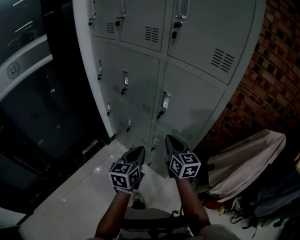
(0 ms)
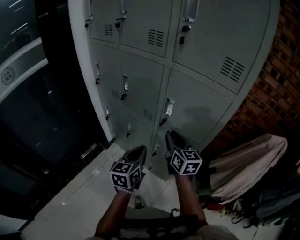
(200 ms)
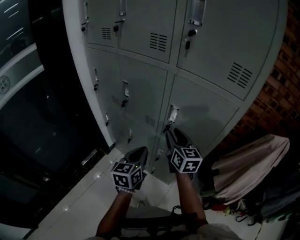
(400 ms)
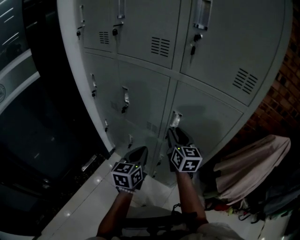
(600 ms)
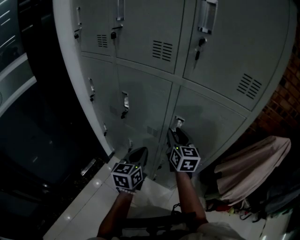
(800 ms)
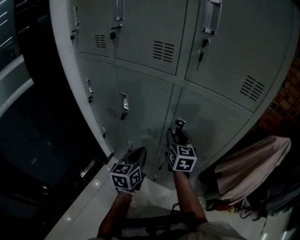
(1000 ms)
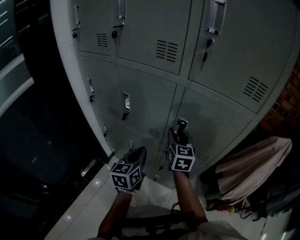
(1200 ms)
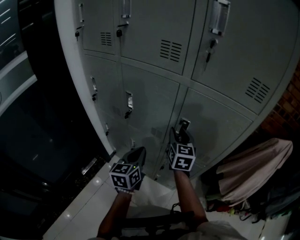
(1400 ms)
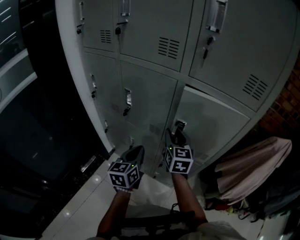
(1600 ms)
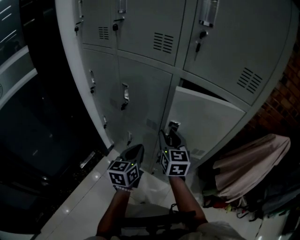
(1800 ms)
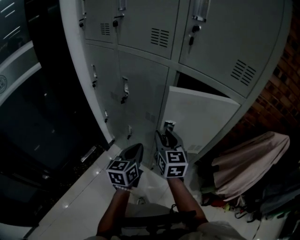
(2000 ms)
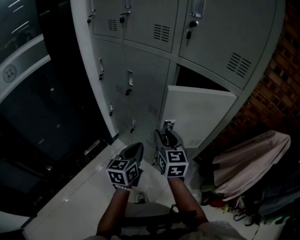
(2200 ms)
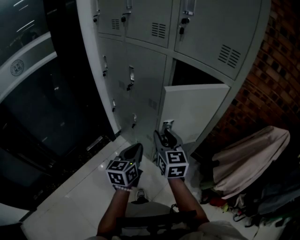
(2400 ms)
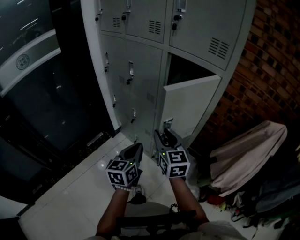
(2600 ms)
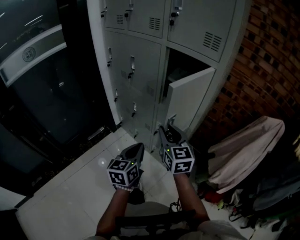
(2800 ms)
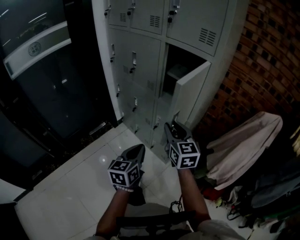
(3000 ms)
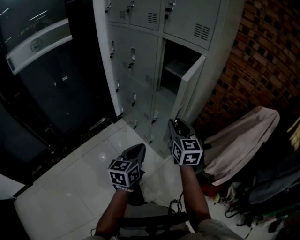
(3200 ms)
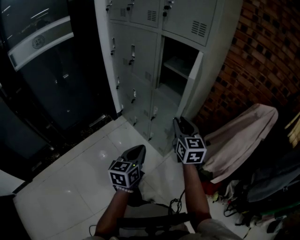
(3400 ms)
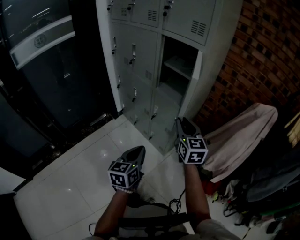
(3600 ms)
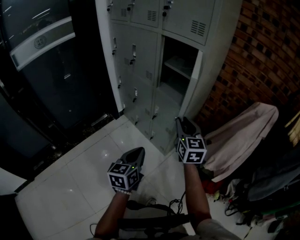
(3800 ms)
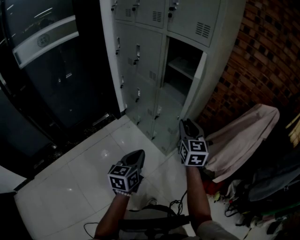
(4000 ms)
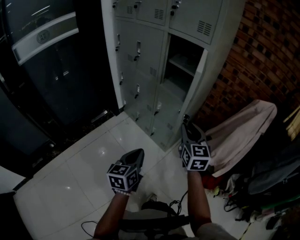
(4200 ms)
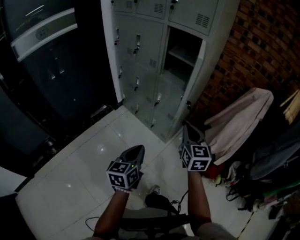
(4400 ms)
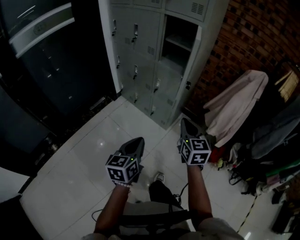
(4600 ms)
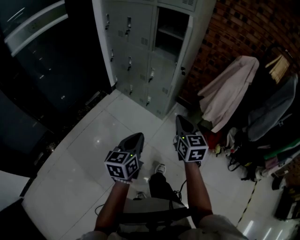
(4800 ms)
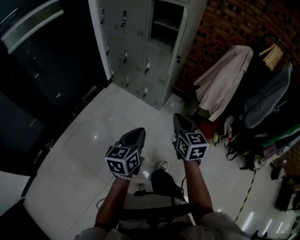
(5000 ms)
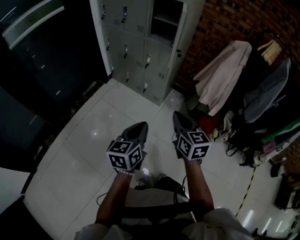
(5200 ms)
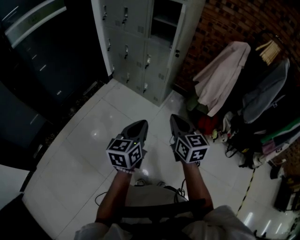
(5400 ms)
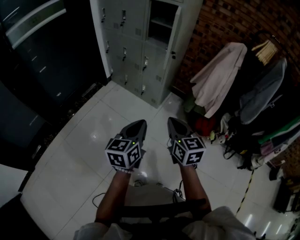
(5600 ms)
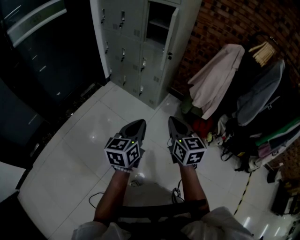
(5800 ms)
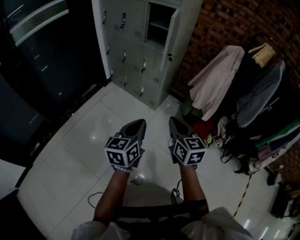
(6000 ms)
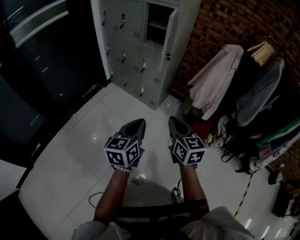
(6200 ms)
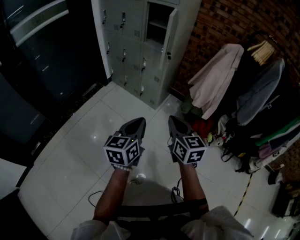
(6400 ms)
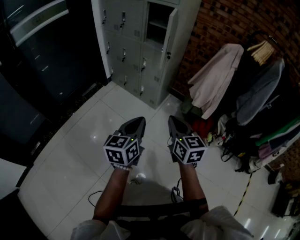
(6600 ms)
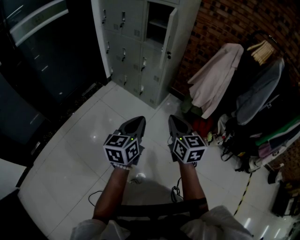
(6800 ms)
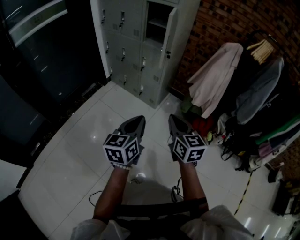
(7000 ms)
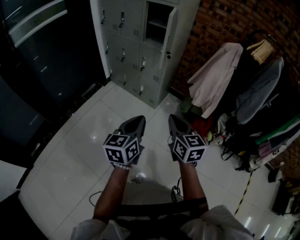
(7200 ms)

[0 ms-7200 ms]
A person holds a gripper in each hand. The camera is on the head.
0 ms to 1400 ms: The left gripper heads forward and to the left, covering approximately 20 cm. The right gripper moves forward, some 15 cm, rotates approximately 30 degrees, and opens.
1400 ms to 2800 ms: The right gripper is displaced backward by roughly 30 cm, and changes its angle by approximately 30 degrees, while the left gripper heads backward and to the right, covering approximately 30 cm.
2800 ms to 4400 ms: The right gripper moves backward and to the right, some 25 cm, and closes its fingers; the left gripper goes roughly 25 cm backward.
4400 ms to 5800 ms: Both grippers move backward, roughly 25 cm.
5800 ms to 7200 ms: There are only small adjustments of the grippers.

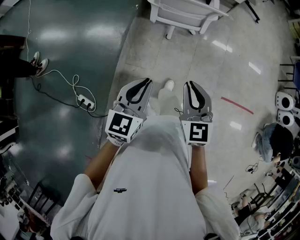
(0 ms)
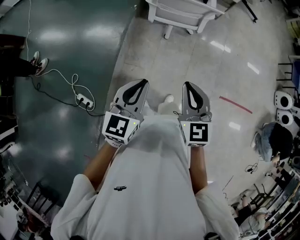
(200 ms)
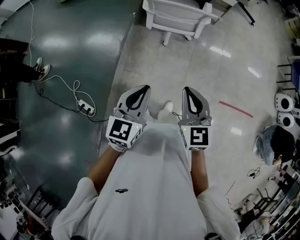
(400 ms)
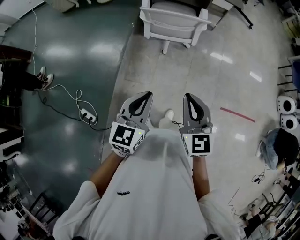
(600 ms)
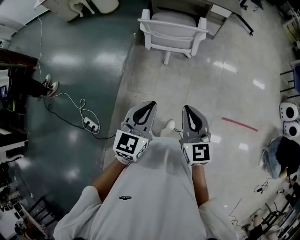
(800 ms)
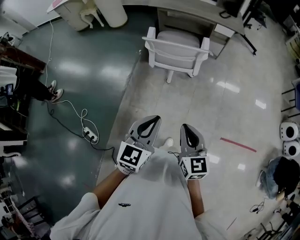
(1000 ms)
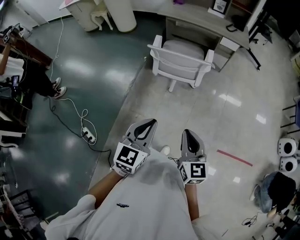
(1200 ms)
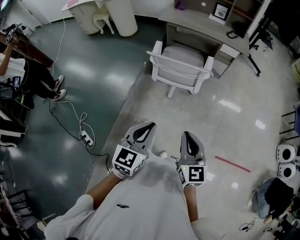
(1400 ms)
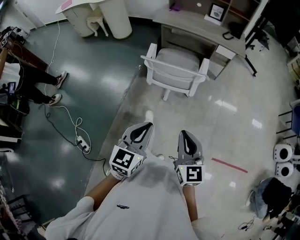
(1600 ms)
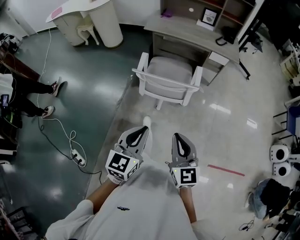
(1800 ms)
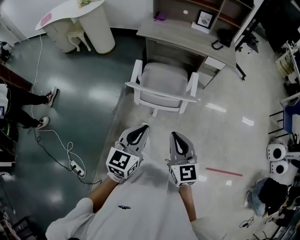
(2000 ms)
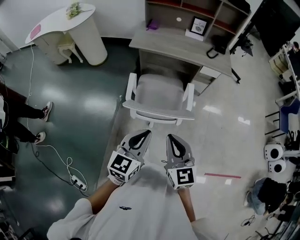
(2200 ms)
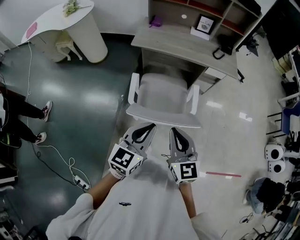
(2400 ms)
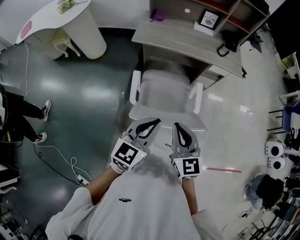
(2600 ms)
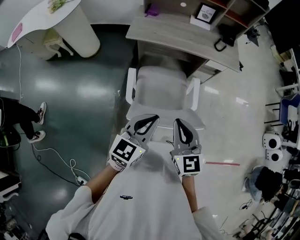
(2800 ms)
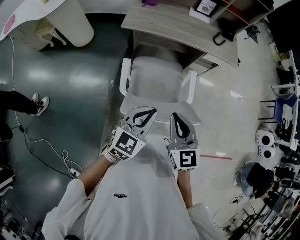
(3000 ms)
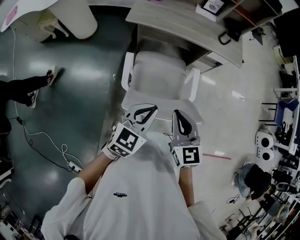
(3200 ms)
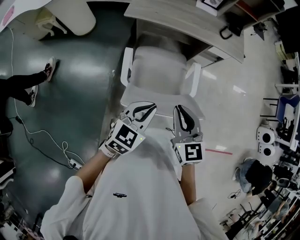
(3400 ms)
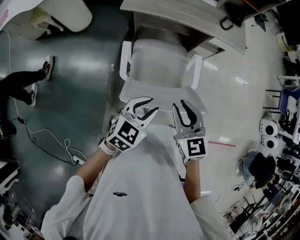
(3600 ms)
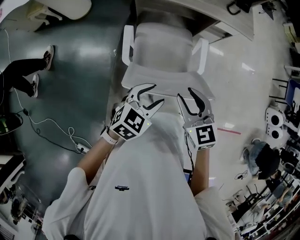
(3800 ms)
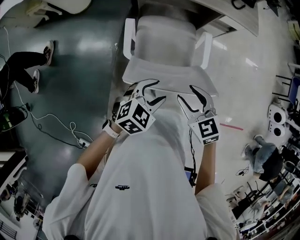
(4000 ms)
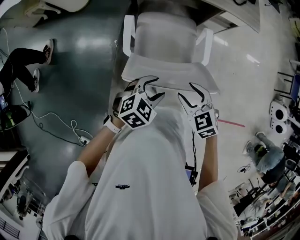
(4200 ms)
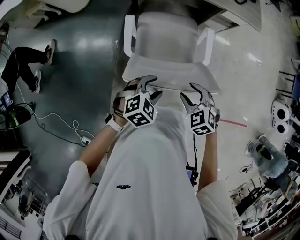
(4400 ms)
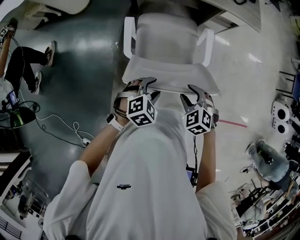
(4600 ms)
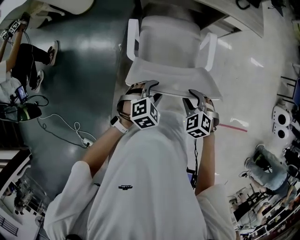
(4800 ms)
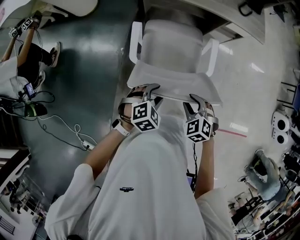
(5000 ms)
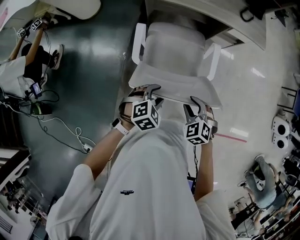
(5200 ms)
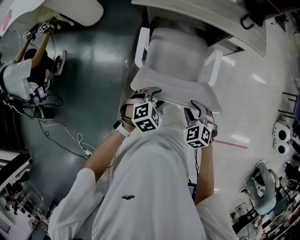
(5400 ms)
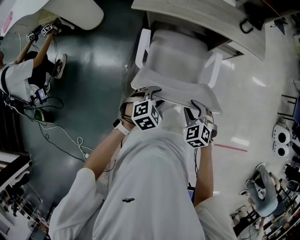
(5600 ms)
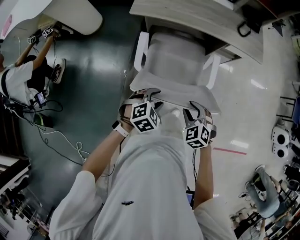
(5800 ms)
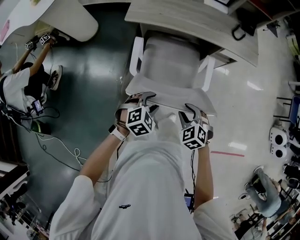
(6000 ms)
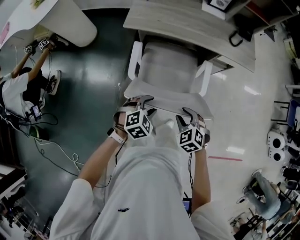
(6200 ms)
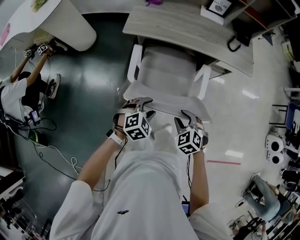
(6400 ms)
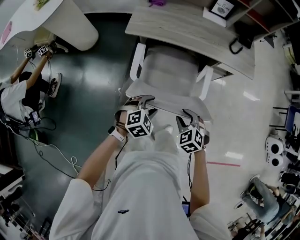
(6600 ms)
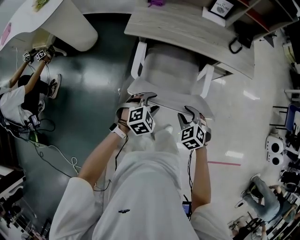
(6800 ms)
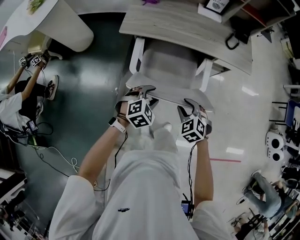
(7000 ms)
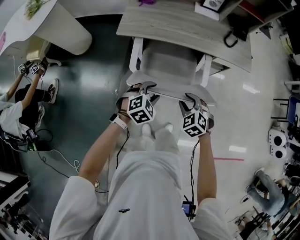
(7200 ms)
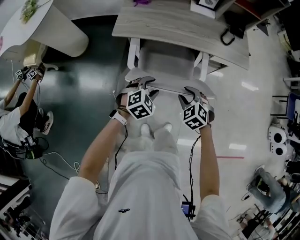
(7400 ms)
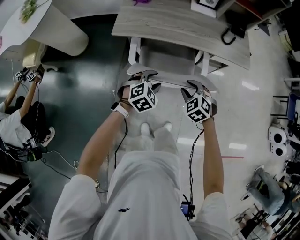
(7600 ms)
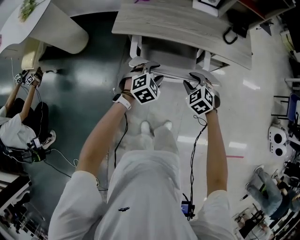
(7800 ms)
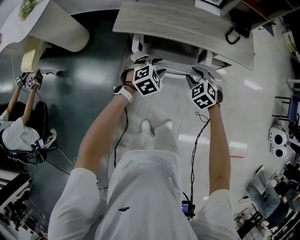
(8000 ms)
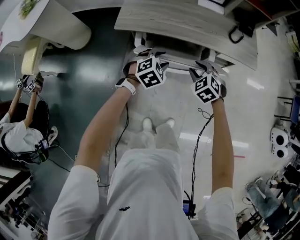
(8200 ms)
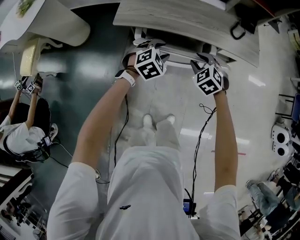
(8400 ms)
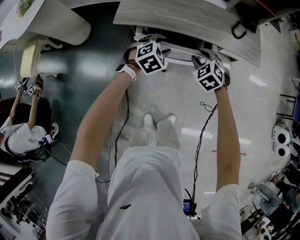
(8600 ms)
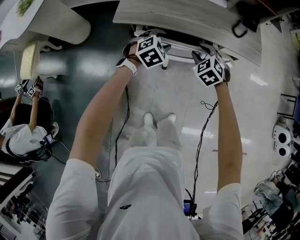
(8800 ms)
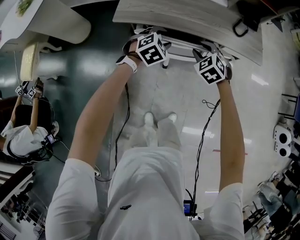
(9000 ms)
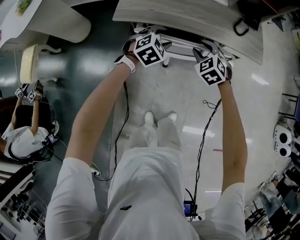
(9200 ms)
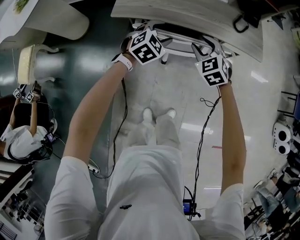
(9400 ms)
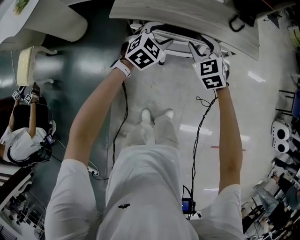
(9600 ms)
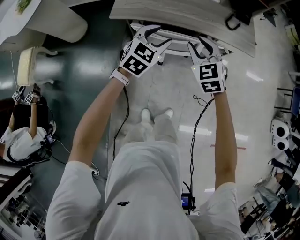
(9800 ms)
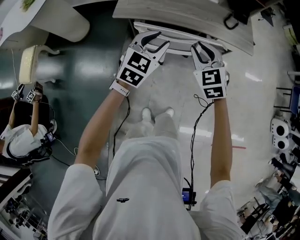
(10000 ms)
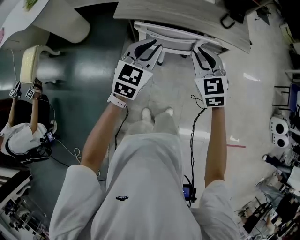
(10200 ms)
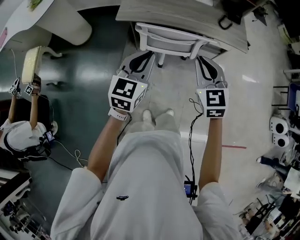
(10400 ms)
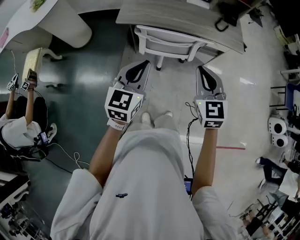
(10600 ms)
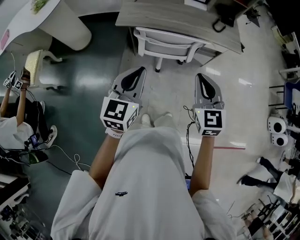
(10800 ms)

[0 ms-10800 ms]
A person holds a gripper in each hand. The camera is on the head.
0 ms to 1600 ms: Both grippers move to the right and forward, approximately 15 cm.
1600 ms to 3000 ms: The two grippers travel together, forward, about 40 cm. The left gripper swivels approximately 20 degrees.
3000 ms to 4600 ms: The grippers both shift downward by some 20 cm. The left gripper tilts its fingers approximately 40 degrees downward, and opens. Meanwhile the right gripper angles its fingers downward, by some 40 degrees, and opens.
4600 ms to 6200 ms: Both grippers travel together forward, roughly 15 cm.
6200 ms to 7800 ms: The grippers both shift forward by approximately 20 cm.
7800 ms to 9200 ms: The two grippers go some 10 cm forward.
9200 ms to 10800 ms: The grippers both shift backward and upward by about 35 cm. The left gripper tips its fingers upward by some 40 degrees, and closes its fingers, while the right gripper turns by some 40 degrees, and closes.

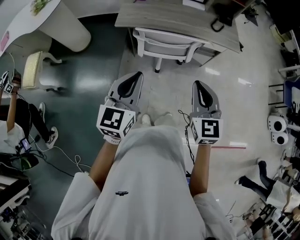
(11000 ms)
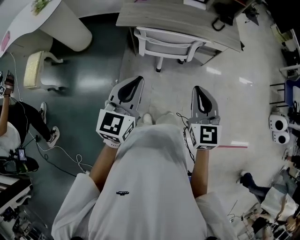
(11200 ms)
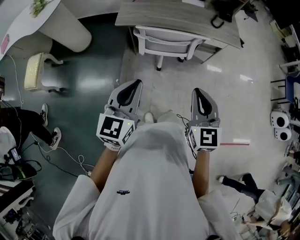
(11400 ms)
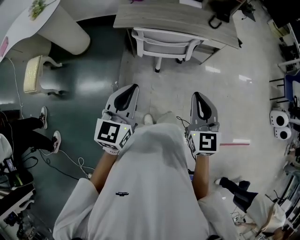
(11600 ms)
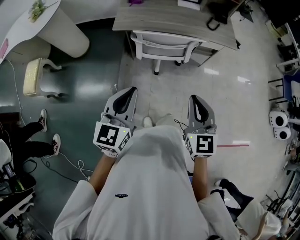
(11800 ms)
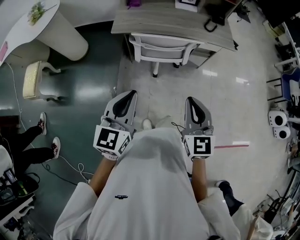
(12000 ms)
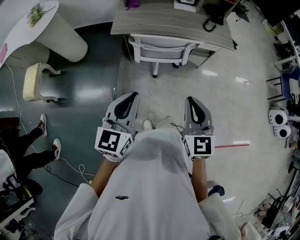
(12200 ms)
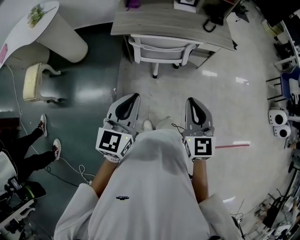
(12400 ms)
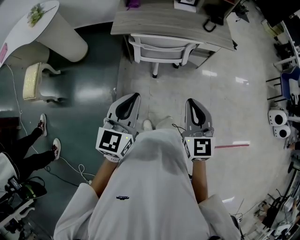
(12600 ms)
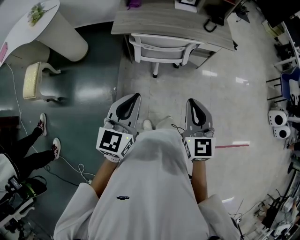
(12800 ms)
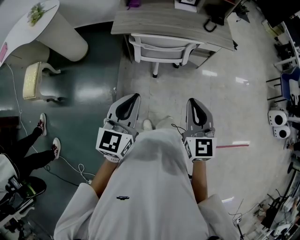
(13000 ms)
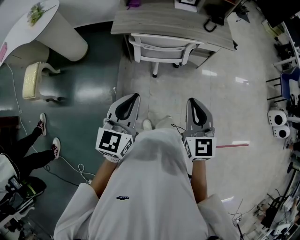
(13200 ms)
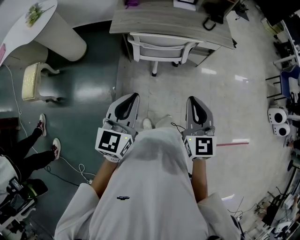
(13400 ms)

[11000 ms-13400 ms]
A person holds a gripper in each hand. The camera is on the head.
11000 ms to 12200 ms: Both grippers move backward, some 5 cm.
12200 ms to 13400 ms: Both grippers stay put.

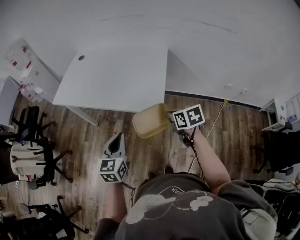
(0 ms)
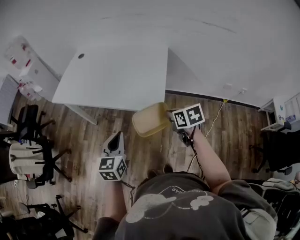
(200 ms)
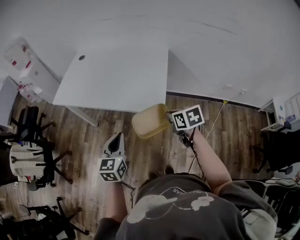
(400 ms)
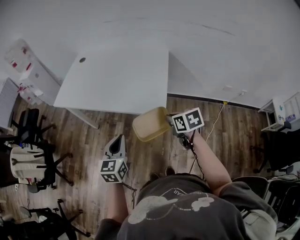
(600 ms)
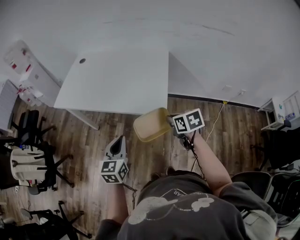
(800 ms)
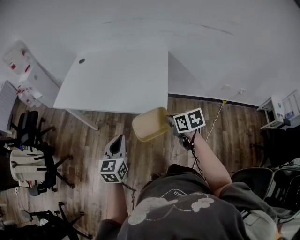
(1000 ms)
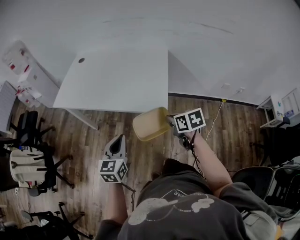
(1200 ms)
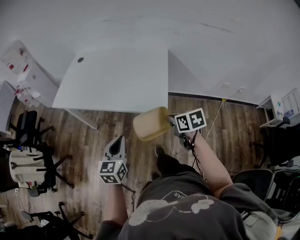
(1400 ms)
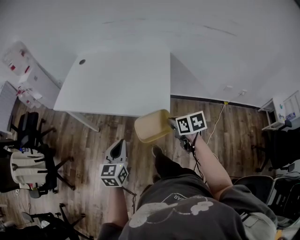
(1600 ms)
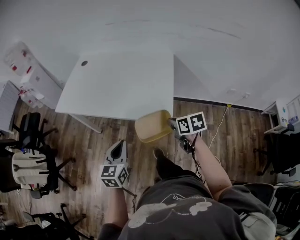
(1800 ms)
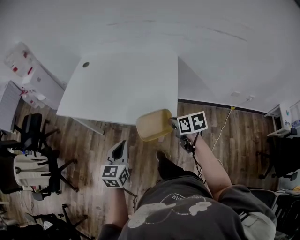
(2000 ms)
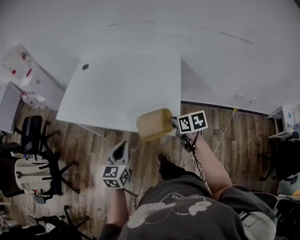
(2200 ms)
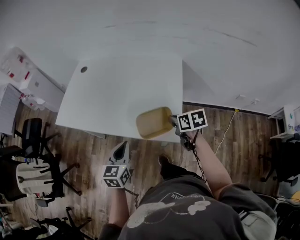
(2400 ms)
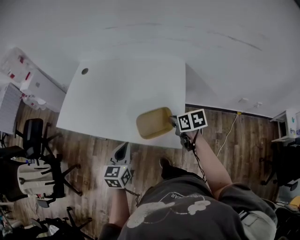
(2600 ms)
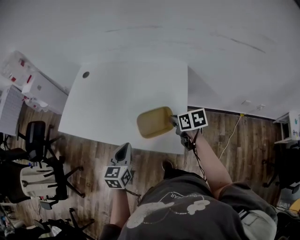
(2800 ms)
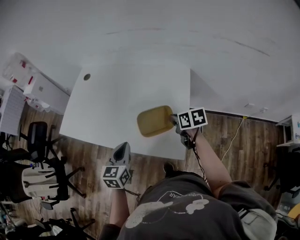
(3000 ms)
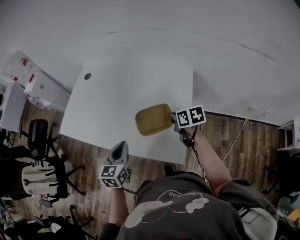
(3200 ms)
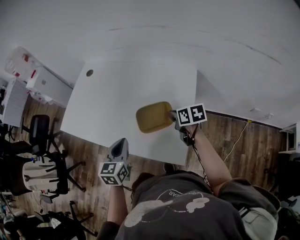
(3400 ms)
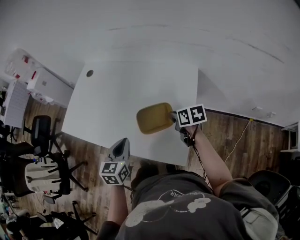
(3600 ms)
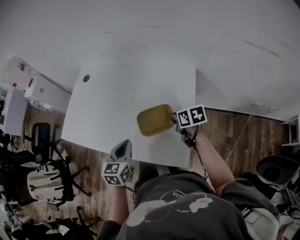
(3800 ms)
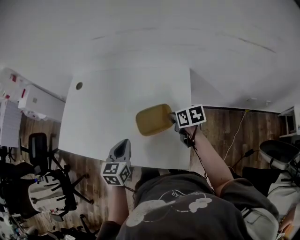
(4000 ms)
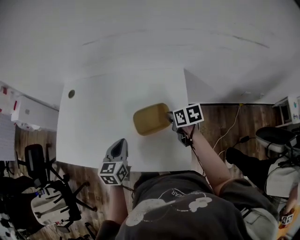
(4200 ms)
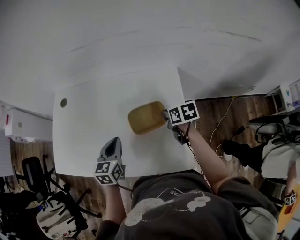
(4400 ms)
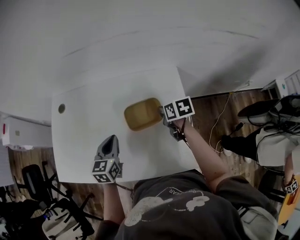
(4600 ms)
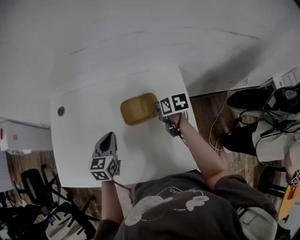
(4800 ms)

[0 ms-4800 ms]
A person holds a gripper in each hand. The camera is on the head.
0 ms to 1600 ms: The left gripper is displaced to the left by approximately 5 cm, while the right gripper changes place by some 5 cm.
1600 ms to 3200 ms: Both grippers move forward, about 30 cm.
3200 ms to 4800 ms: The two grippers go some 20 cm forward. The right gripper rotates some 20 degrees.
